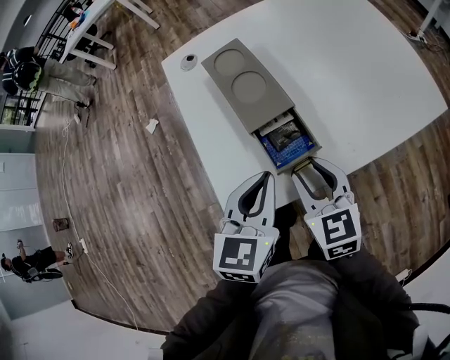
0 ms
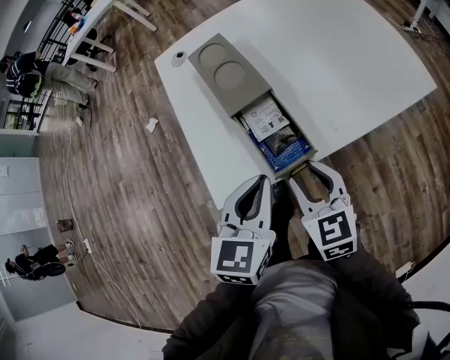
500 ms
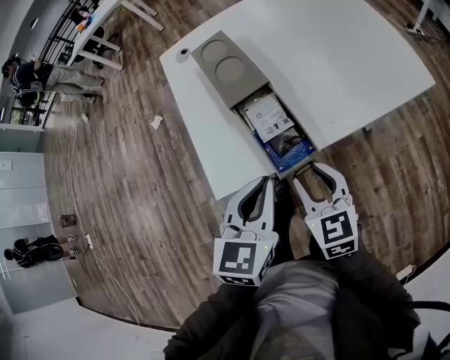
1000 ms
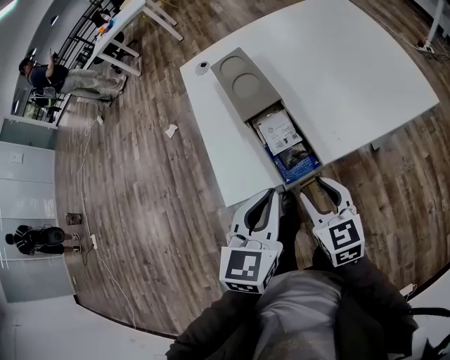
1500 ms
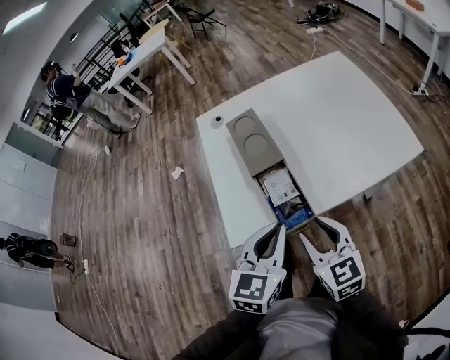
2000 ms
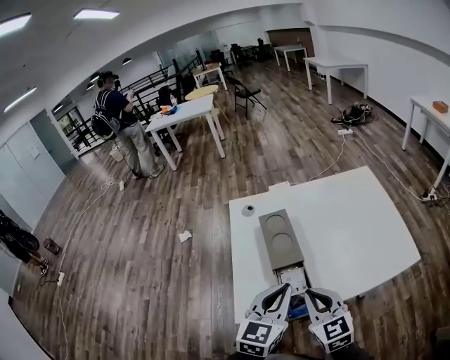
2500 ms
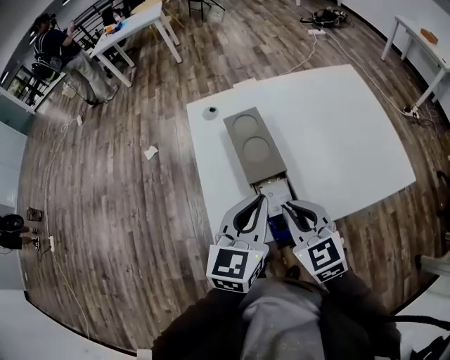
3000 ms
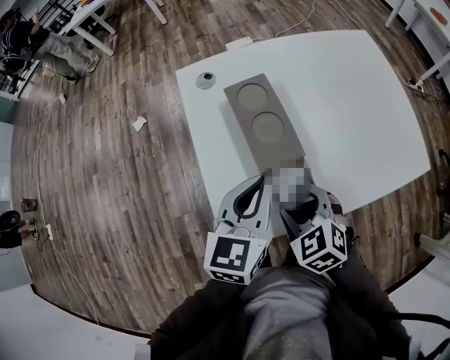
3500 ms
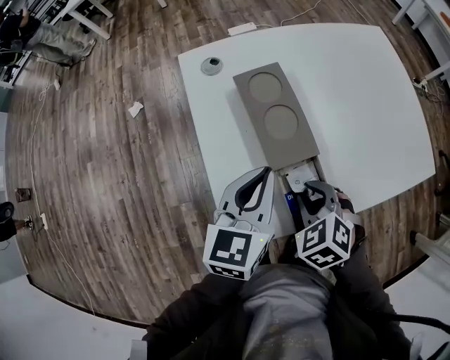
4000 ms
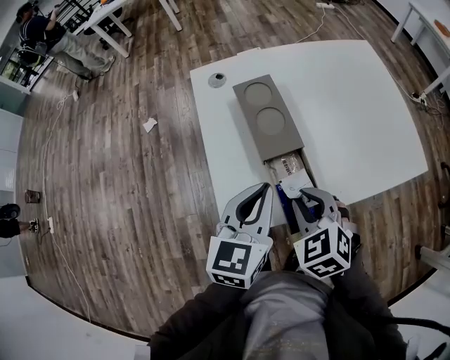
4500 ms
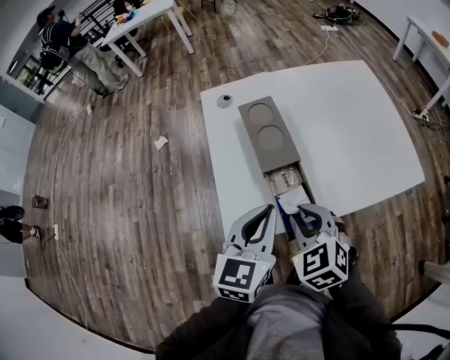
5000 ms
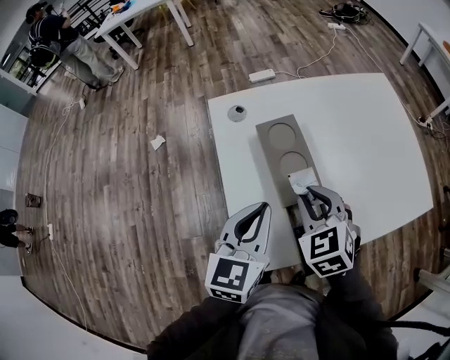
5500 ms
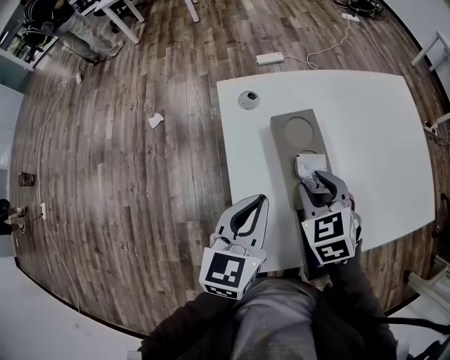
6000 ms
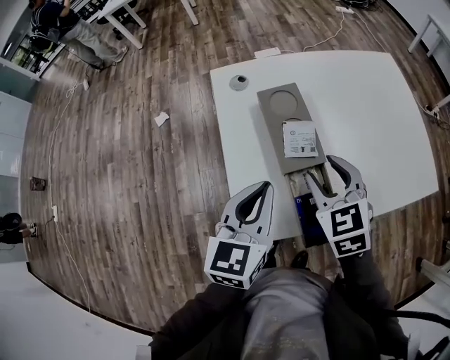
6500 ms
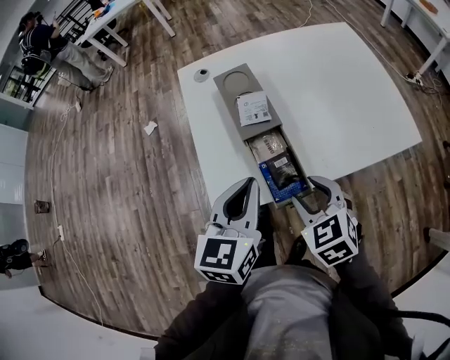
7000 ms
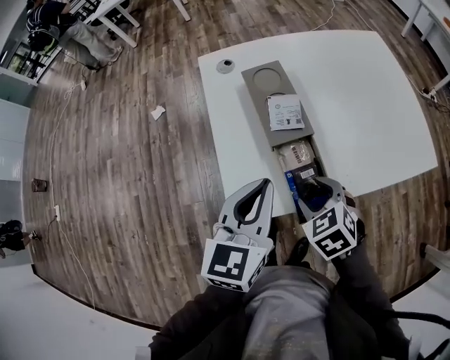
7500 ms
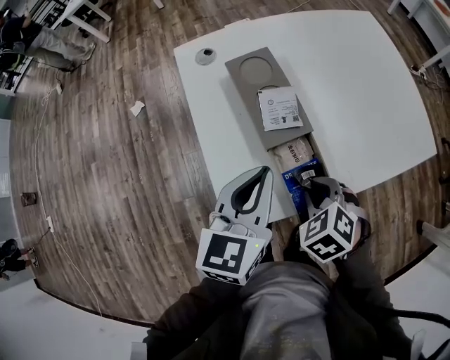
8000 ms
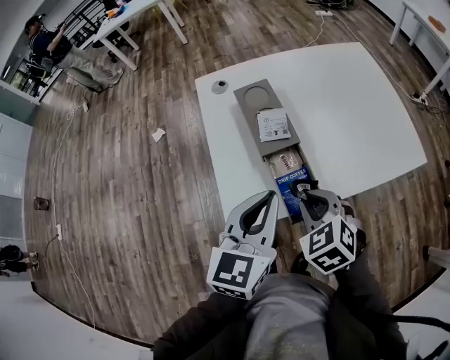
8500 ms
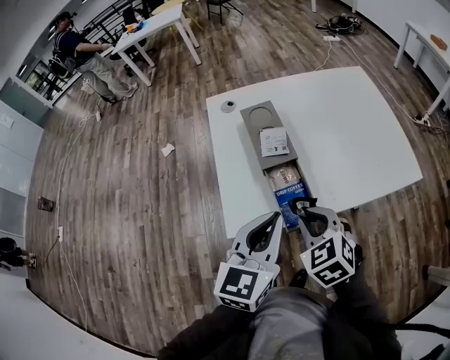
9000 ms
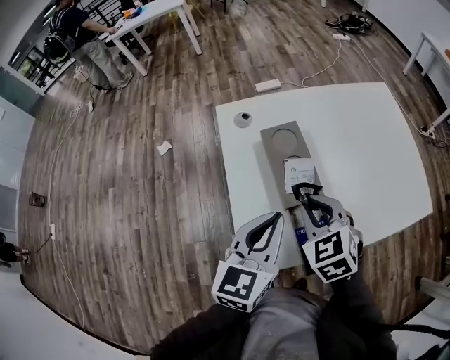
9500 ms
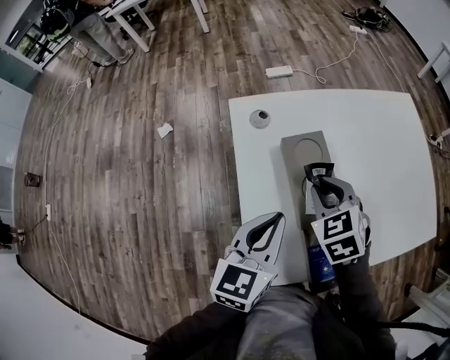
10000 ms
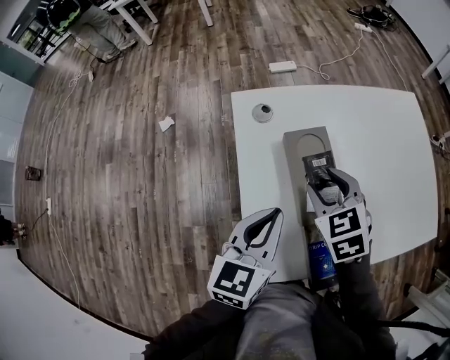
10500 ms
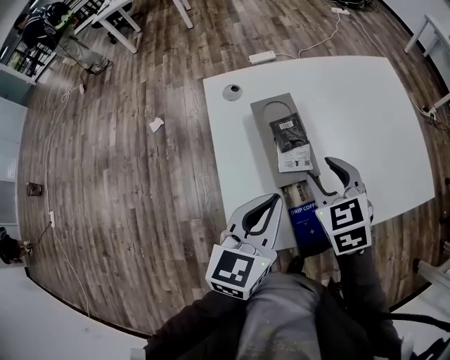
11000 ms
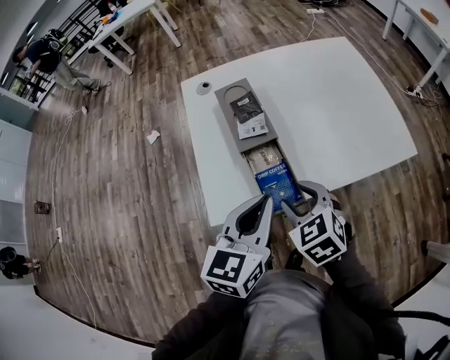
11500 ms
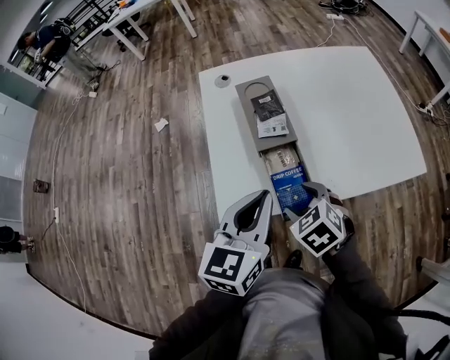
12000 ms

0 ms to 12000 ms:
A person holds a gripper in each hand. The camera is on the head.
0 ms to 2000 ms: The left gripper travels backward, upward and to the right by some 10 cm. Meanwhile the right gripper is displaced backward and upward by some 10 cm.
2000 ms to 4000 ms: The right gripper travels forward, downward and to the left by some 15 cm, and angles its fingers downward, by about 40 degrees. The left gripper moves forward and to the left, some 20 cm.
4000 ms to 6000 ms: The left gripper heads to the left, covering about 5 cm, and goes backward and returns, some 10 cm each way. Meanwhile the right gripper heads forward, upward and to the left, covering roughly 15 cm.
6000 ms to 8000 ms: The right gripper goes approximately 20 cm backward, to the right and downward, and swivels some 20 degrees, while the left gripper heads to the right and backward, covering approximately 10 cm.
8000 ms to 10000 ms: The right gripper moves forward and upward, roughly 20 cm, while the left gripper shifts roughly 10 cm forward and to the left.
10000 ms to 12000 ms: The right gripper shifts some 25 cm backward, and opens its fingers. Meanwhile the left gripper shifts some 15 cm backward and to the right.

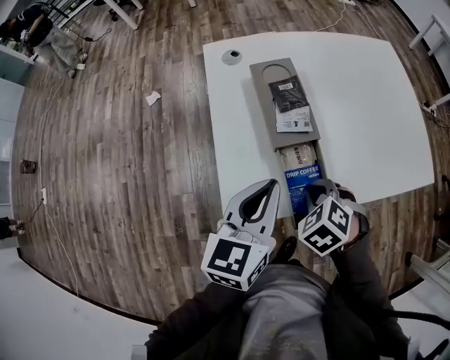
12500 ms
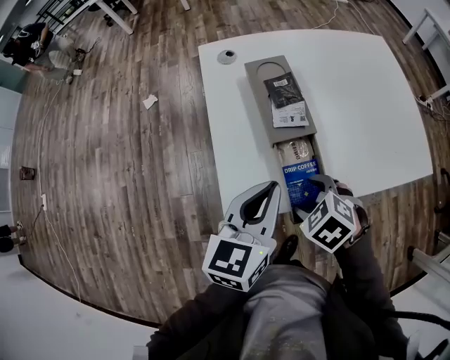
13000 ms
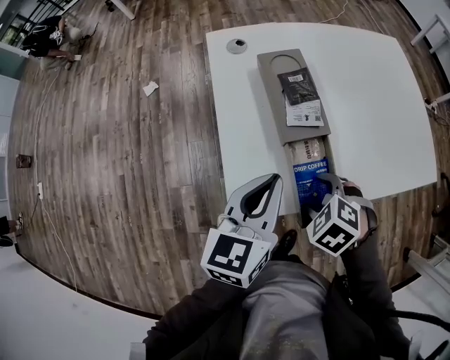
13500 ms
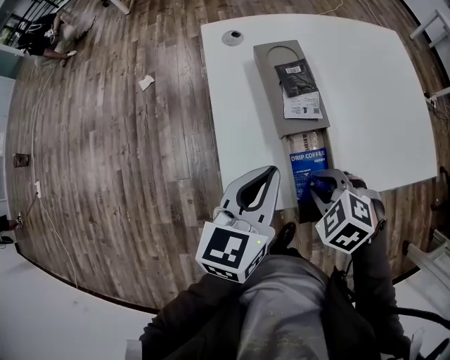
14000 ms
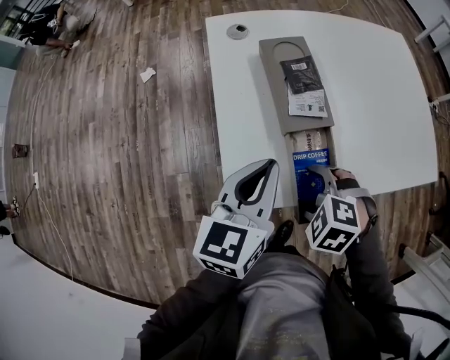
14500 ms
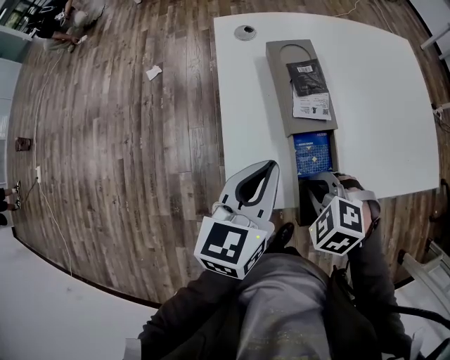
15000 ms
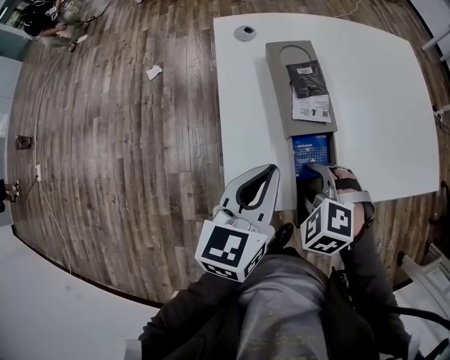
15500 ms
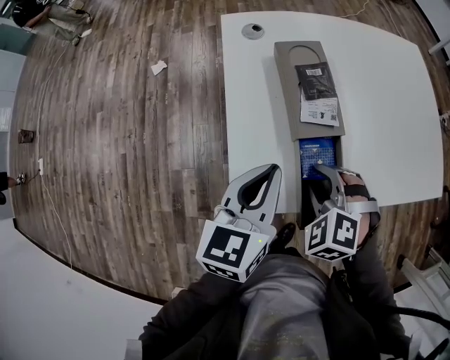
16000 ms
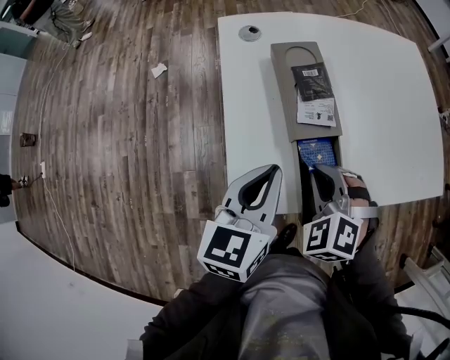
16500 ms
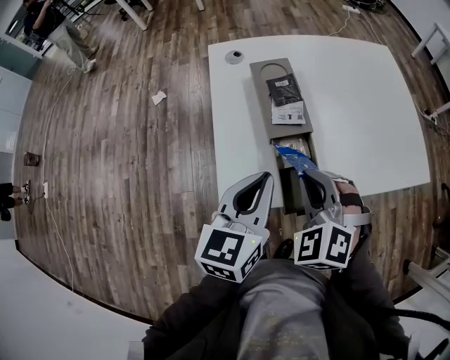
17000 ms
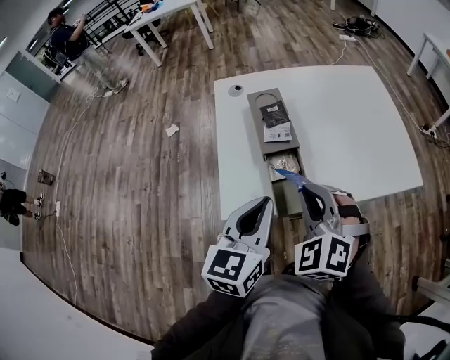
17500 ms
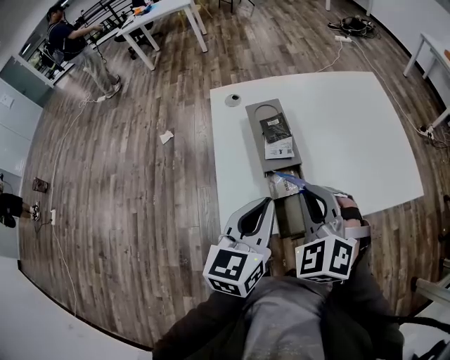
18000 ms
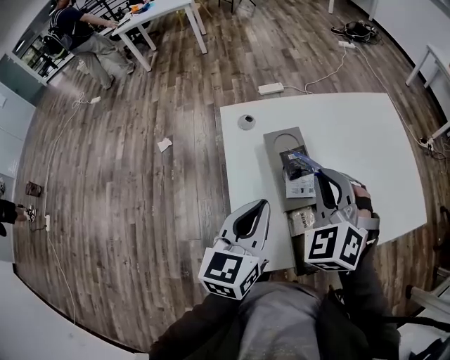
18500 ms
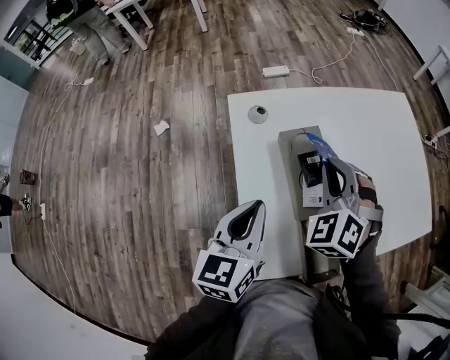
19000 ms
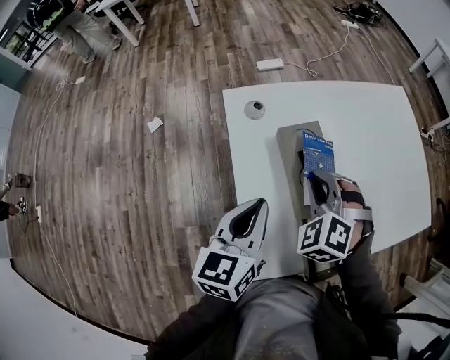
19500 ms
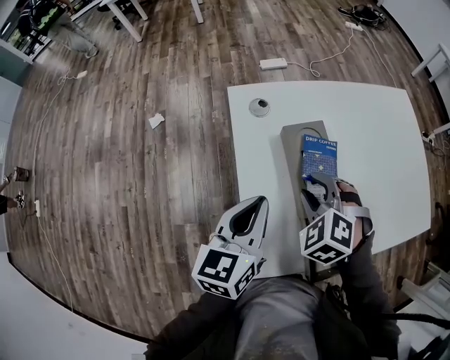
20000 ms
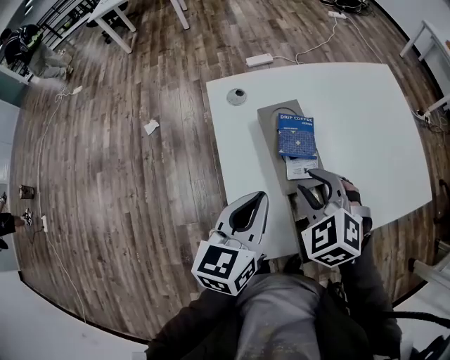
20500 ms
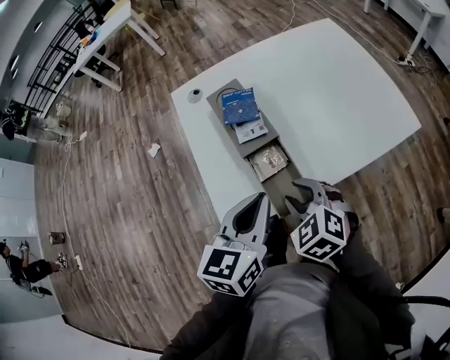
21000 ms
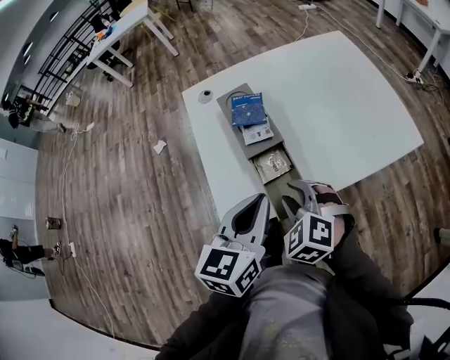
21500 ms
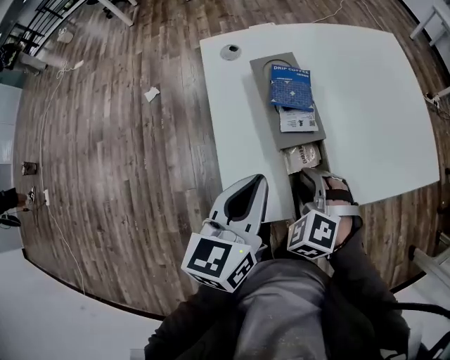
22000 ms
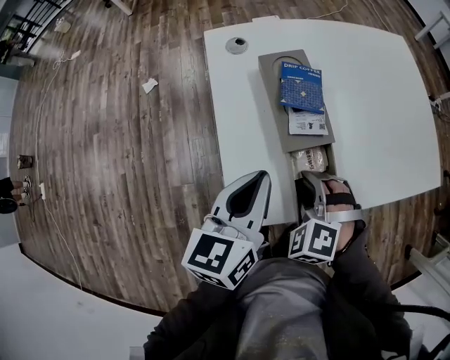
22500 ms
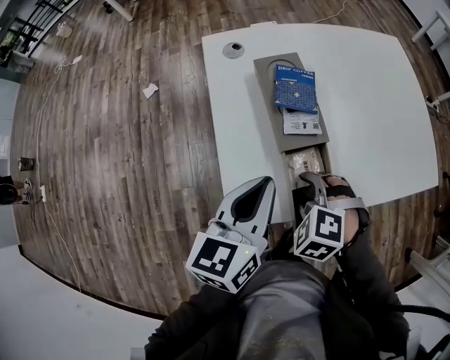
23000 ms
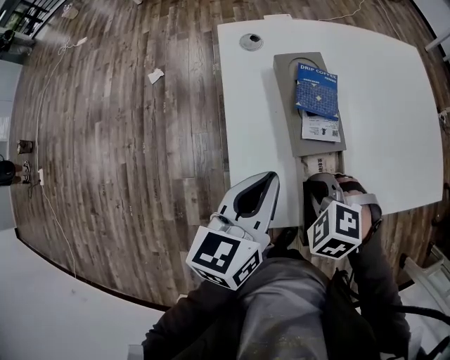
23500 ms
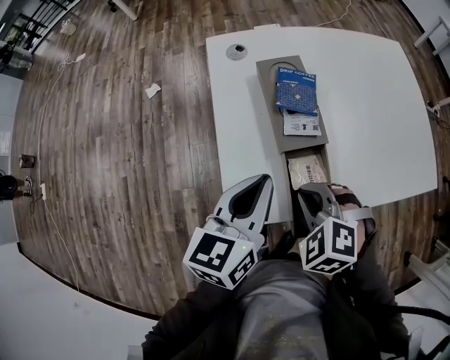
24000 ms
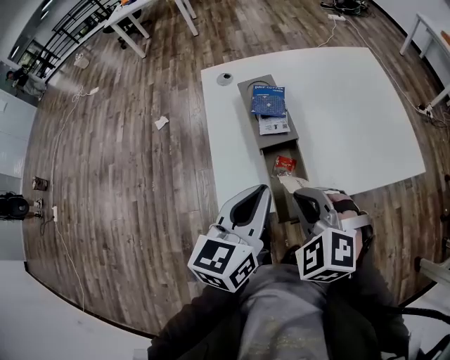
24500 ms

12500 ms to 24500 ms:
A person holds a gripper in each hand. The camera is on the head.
12500 ms to 14500 ms: The right gripper moves some 5 cm, rotates some 20 degrees, and opens up.
14500 ms to 16500 ms: The right gripper moves forward, roughly 5 cm, turns by about 30 degrees, and closes.
16500 ms to 18500 ms: The right gripper travels upward and forward by approximately 20 cm, and rotates some 20 degrees, while the left gripper is displaced upward and forward by approximately 10 cm.
18500 ms to 20500 ms: The right gripper is displaced downward by some 10 cm, rotates approximately 20 degrees, and opens.
20500 ms to 22500 ms: The right gripper shifts about 15 cm downward and backward, and rotates about 20 degrees.
22500 ms to 24500 ms: The left gripper heads backward, to the right and upward, covering some 10 cm. The right gripper travels upward and backward by about 15 cm, and closes.

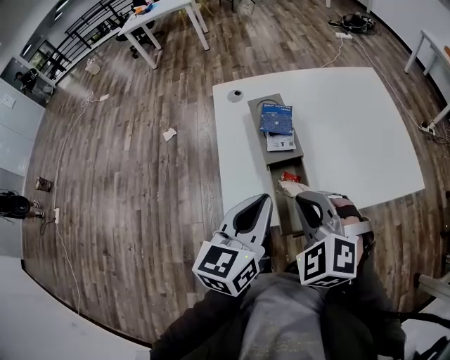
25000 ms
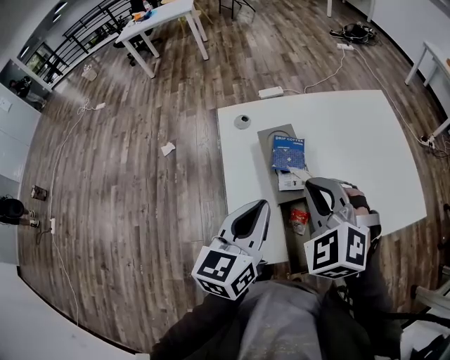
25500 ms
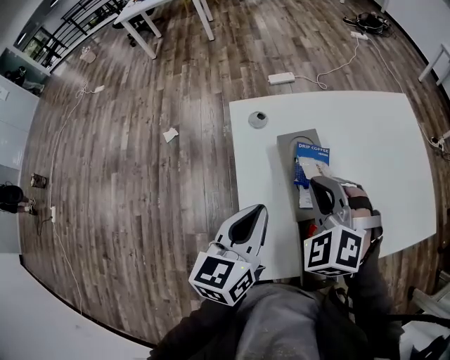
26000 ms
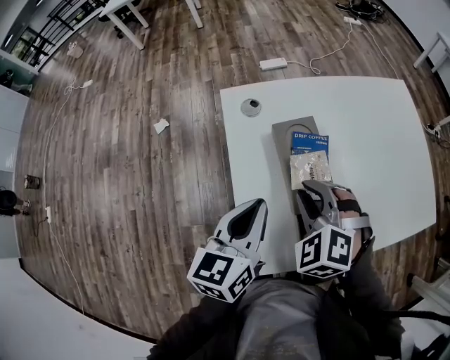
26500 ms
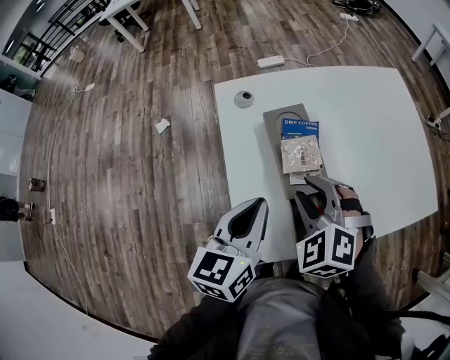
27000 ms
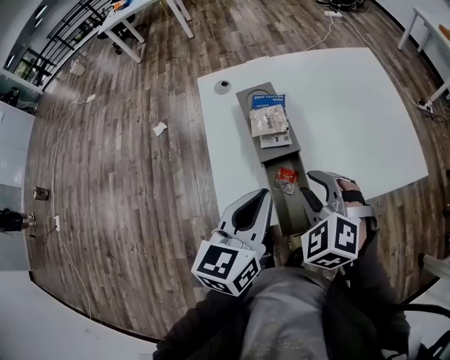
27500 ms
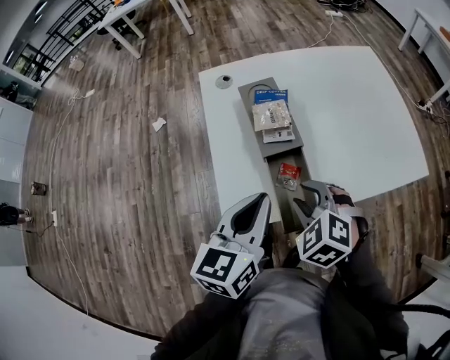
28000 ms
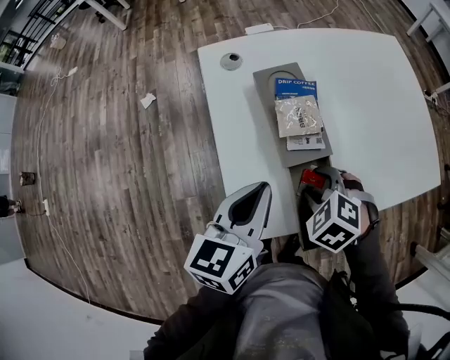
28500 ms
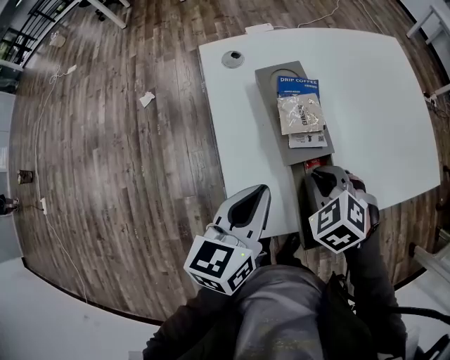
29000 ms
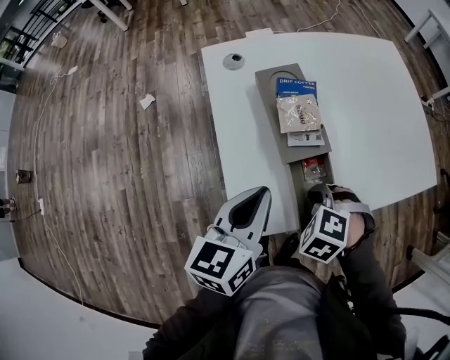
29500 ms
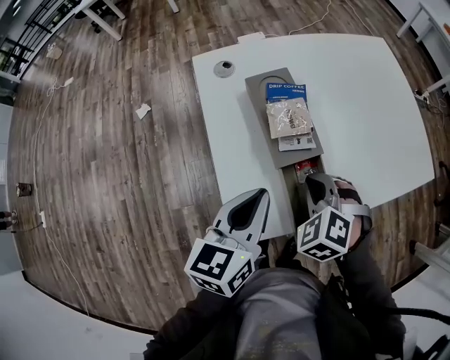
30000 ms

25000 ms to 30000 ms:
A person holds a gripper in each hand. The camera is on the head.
25000 ms to 27500 ms: The left gripper travels forward and back again, approximately 15 cm each way. Meanwhile the right gripper heads downward, covering approximately 5 cm, moves roughly 20 cm forward and comes back, and opens its fingers.
27500 ms to 30000 ms: The left gripper ends up roughly 10 cm from where it was. Meanwhile the right gripper moves downward, about 10 cm, and closes up.
